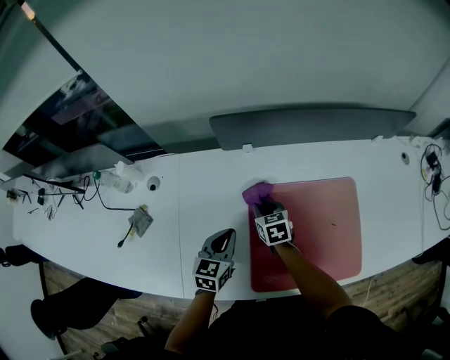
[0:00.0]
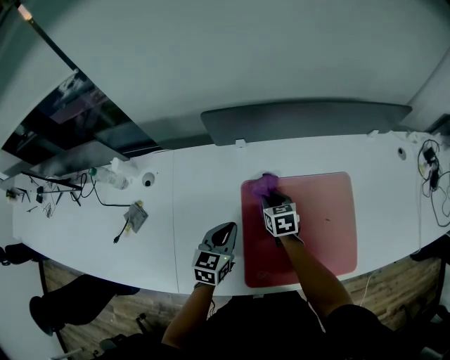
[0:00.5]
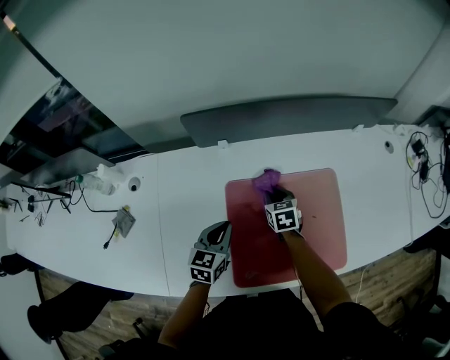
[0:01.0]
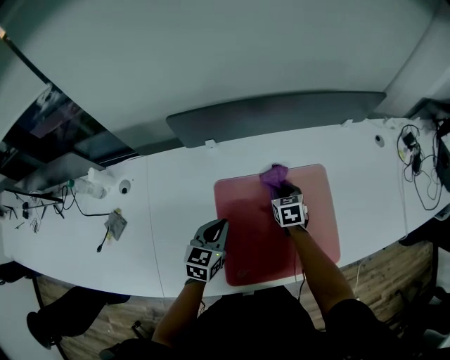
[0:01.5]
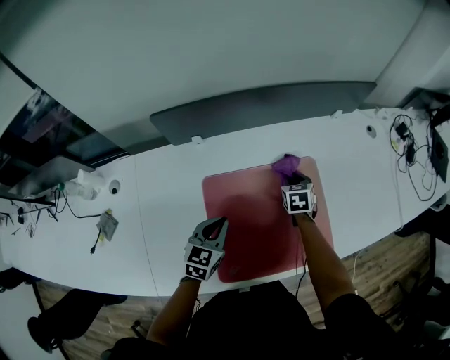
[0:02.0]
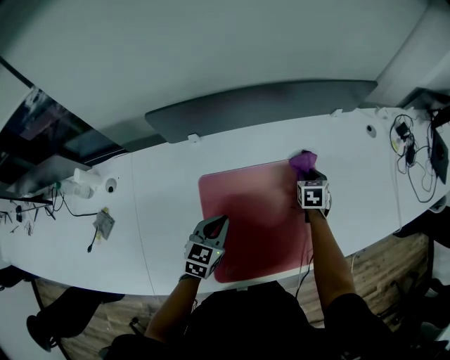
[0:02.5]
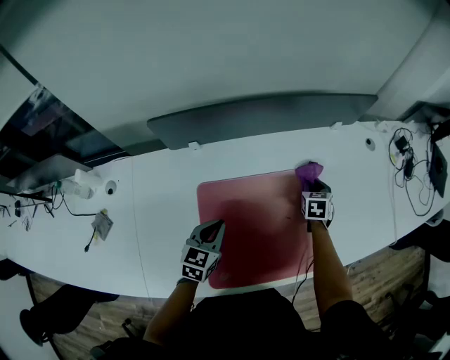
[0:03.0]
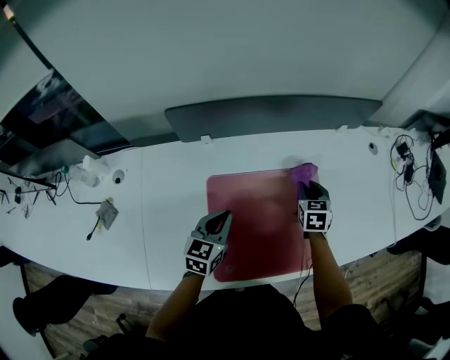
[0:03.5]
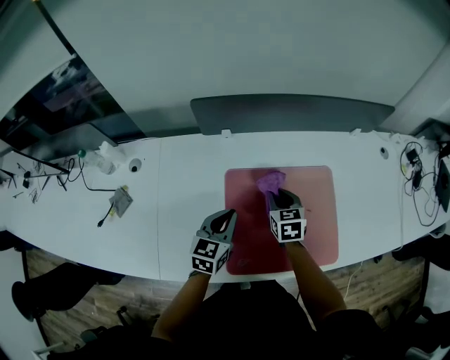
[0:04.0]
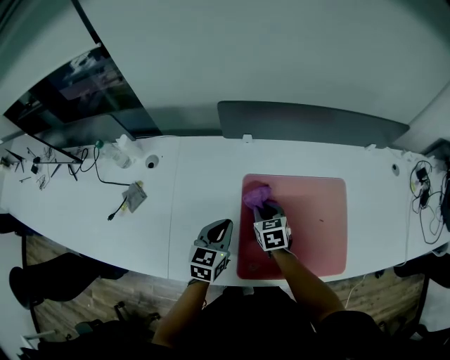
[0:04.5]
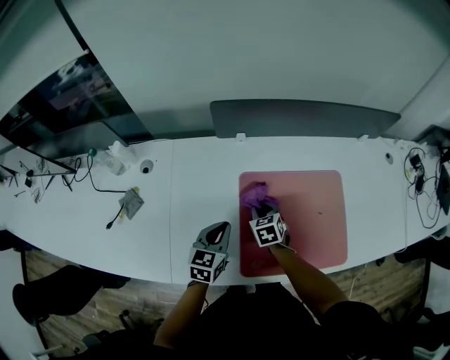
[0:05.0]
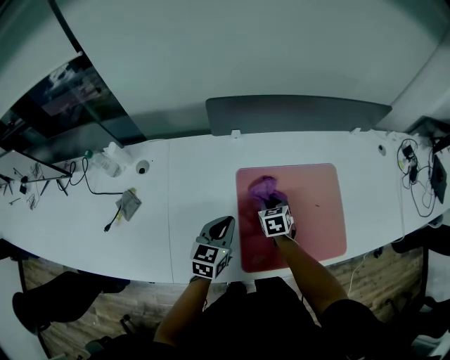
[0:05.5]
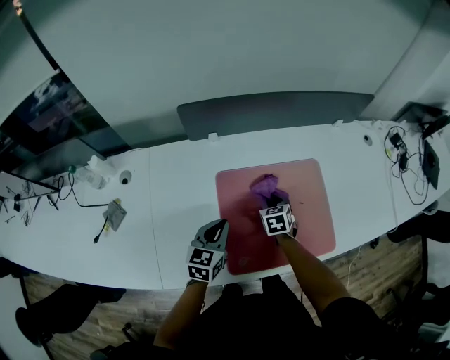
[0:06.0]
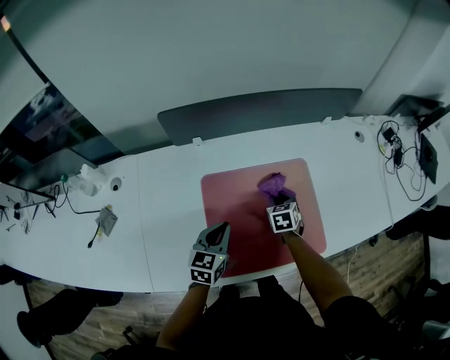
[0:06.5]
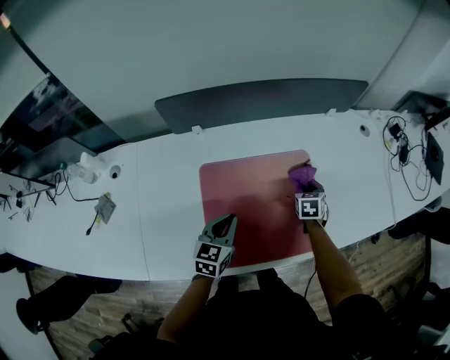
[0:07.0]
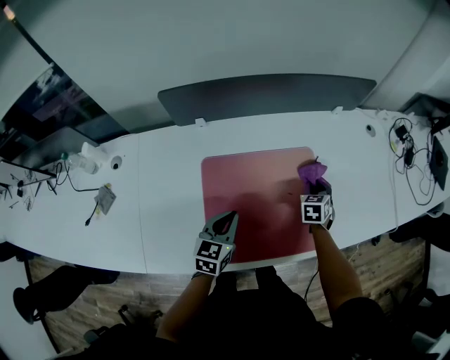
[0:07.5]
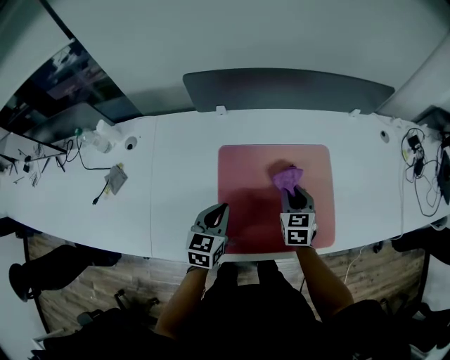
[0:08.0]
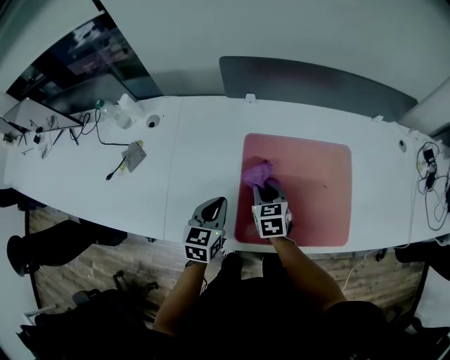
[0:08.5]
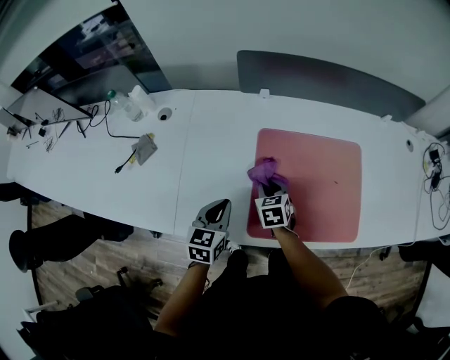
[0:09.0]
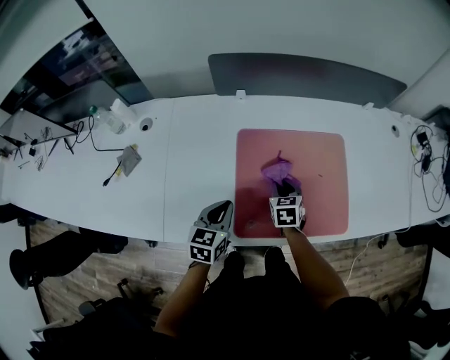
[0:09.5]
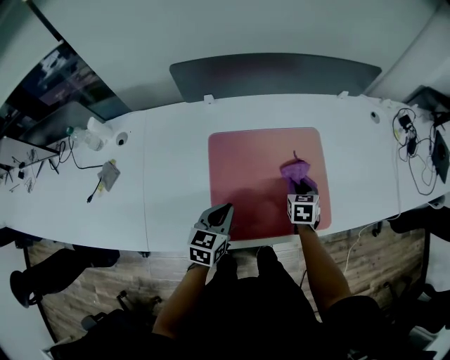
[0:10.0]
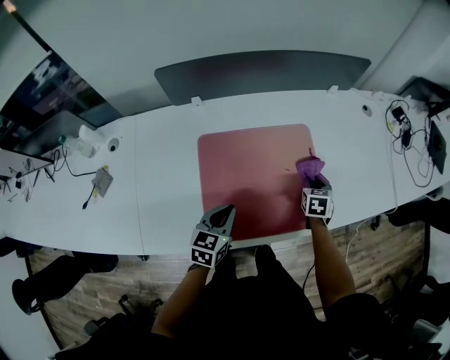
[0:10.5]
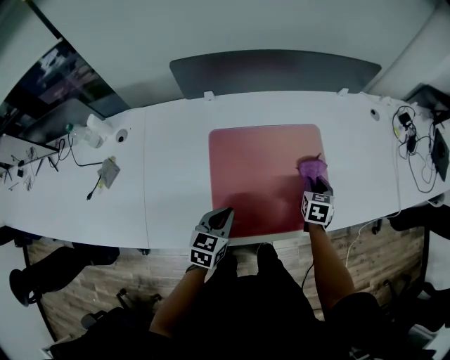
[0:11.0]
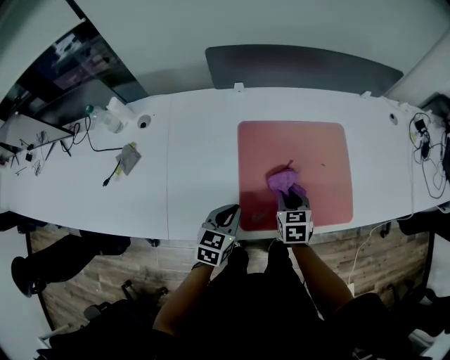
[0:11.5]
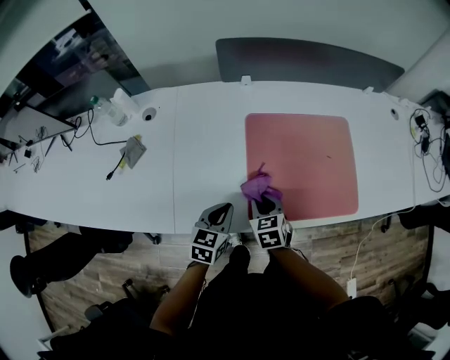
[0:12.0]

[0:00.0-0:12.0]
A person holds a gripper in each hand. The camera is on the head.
0:00.0 to 0:02.0: The right gripper shifts roughly 30 cm to the right, and swivels roughly 30 degrees, while the left gripper goes roughly 10 cm to the right.
0:02.0 to 0:04.0: The right gripper goes roughly 15 cm to the left, backward and upward. Meanwhile the left gripper ends up some 5 cm from where it was.
0:04.0 to 0:06.0: The right gripper heads downward, covering about 5 cm, and moves about 10 cm to the left and comes back.
0:06.0 to 0:08.0: The right gripper heads upward, covering roughly 5 cm, and moves approximately 20 cm to the right and comes back. Meanwhile the left gripper reaches about 10 cm to the right, then returns.
0:08.0 to 0:10.0: The right gripper heads downward, covering approximately 5 cm, and moves some 20 cm to the left and comes back. Meanwhile the left gripper travels to the left and back again, some 10 cm each way.
0:10.0 to 0:12.0: The right gripper is displaced to the left and backward by about 30 cm, and turns by some 20 degrees. The left gripper goes approximately 15 cm to the left and backward.

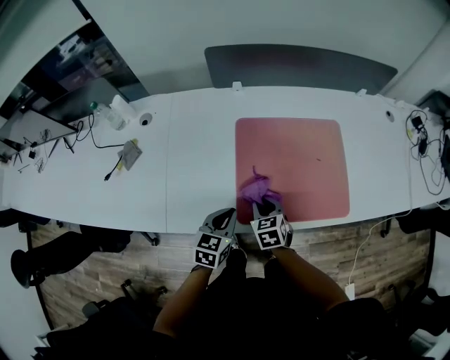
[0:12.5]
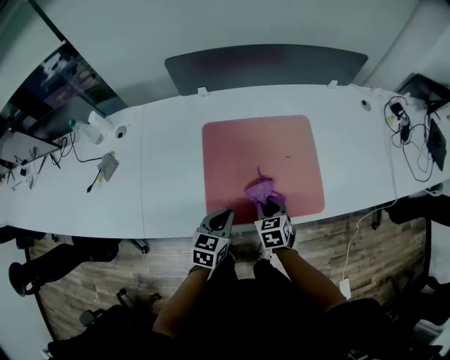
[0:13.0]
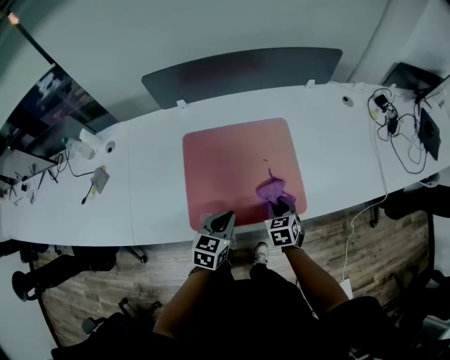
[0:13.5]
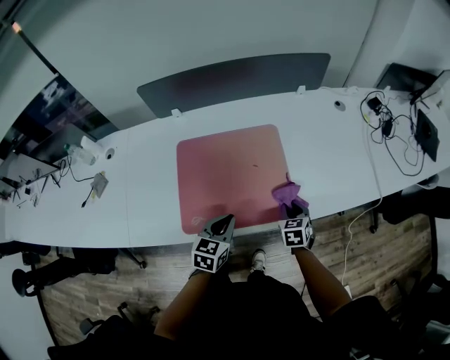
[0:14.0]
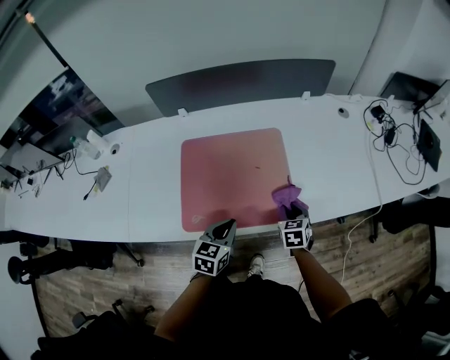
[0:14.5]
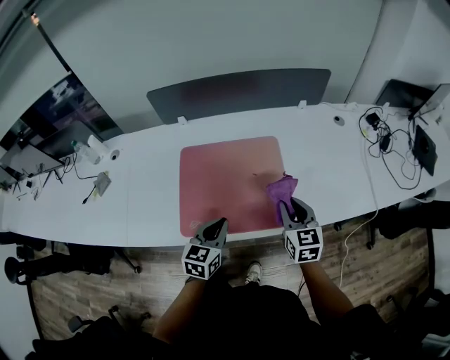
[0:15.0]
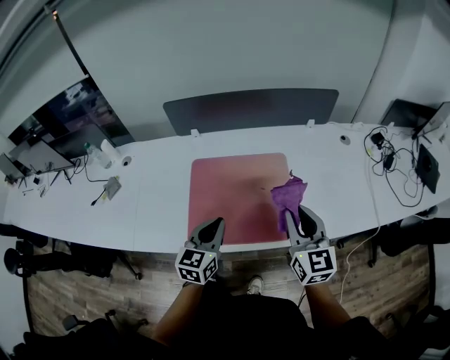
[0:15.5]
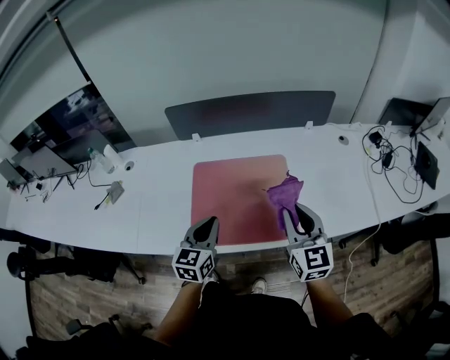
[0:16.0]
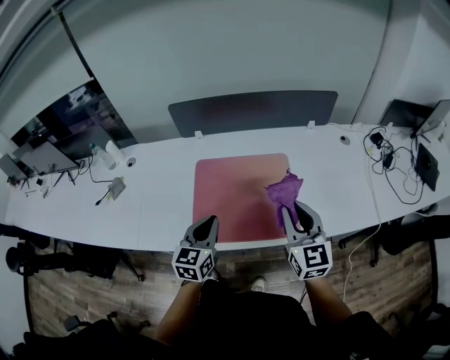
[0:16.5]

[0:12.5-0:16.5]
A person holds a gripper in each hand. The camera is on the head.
0:12.5 to 0:14.5: The left gripper heads to the right, covering some 20 cm, while the right gripper is displaced to the right by some 30 cm.
0:14.5 to 0:16.5: The left gripper moves upward and to the left, roughly 15 cm, and changes its angle by some 20 degrees. The right gripper goes some 25 cm upward, and tips its fingers upward by approximately 40 degrees.

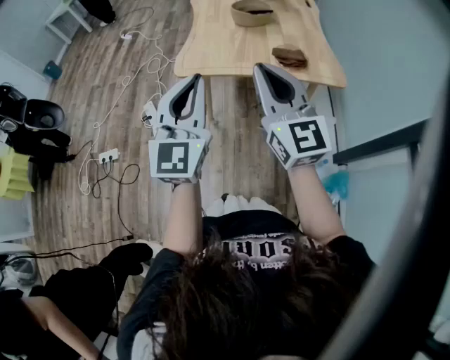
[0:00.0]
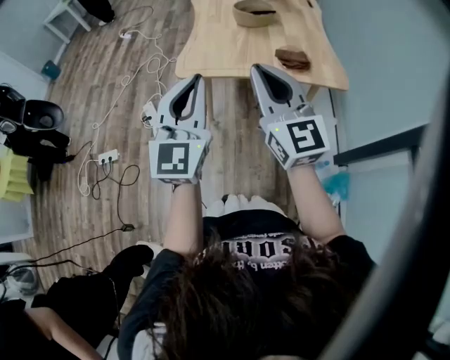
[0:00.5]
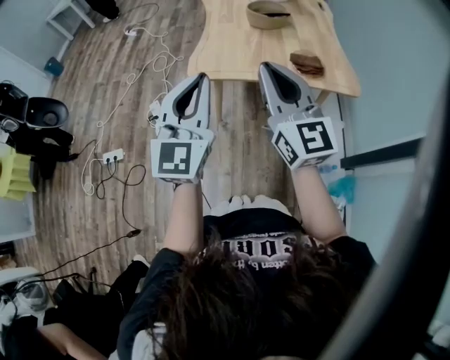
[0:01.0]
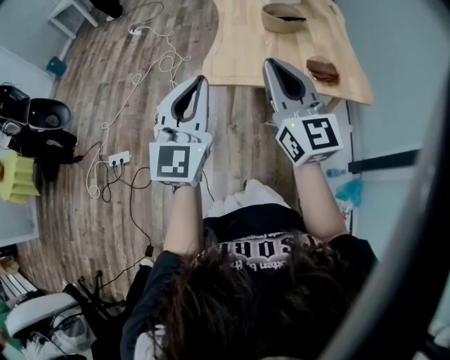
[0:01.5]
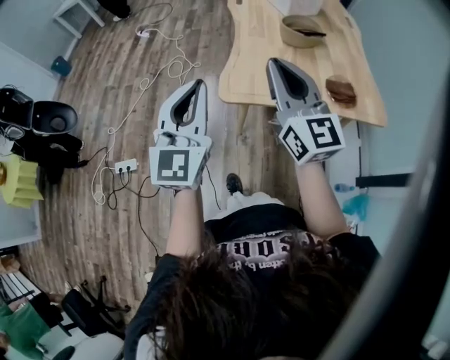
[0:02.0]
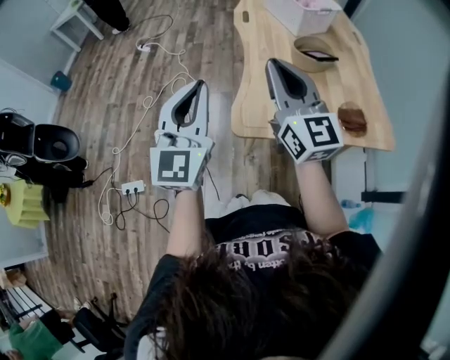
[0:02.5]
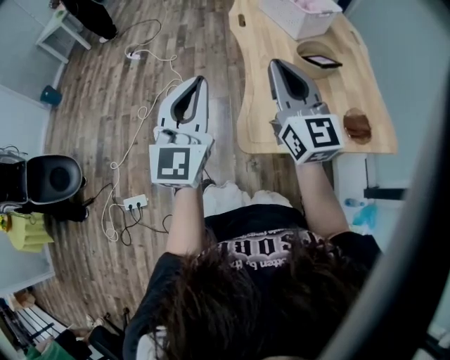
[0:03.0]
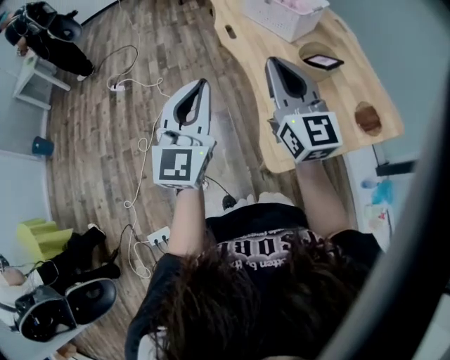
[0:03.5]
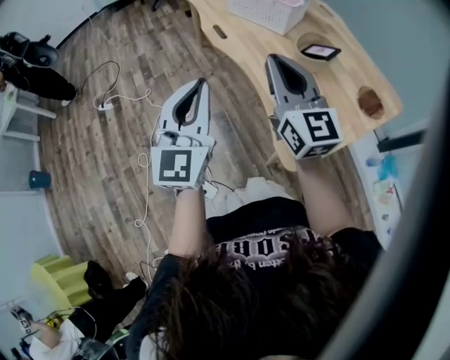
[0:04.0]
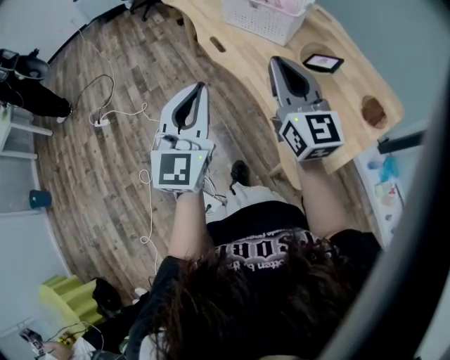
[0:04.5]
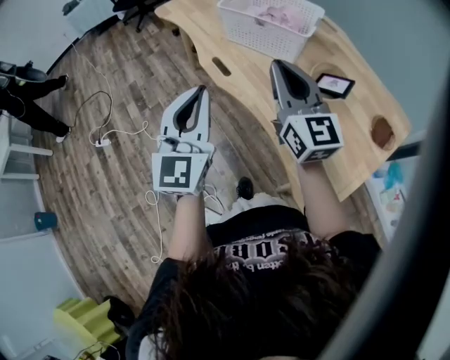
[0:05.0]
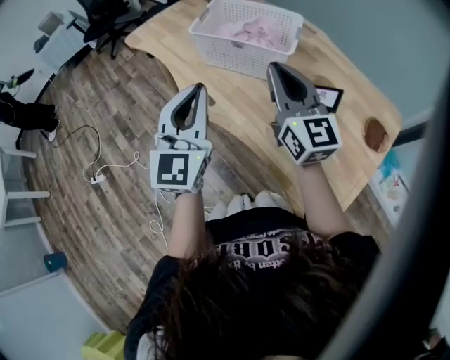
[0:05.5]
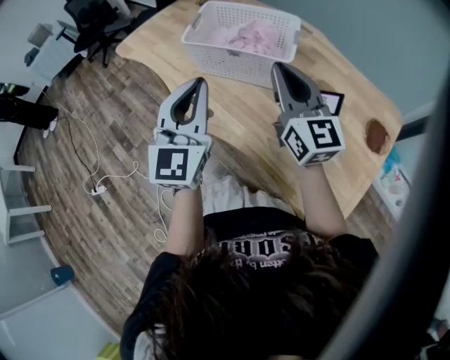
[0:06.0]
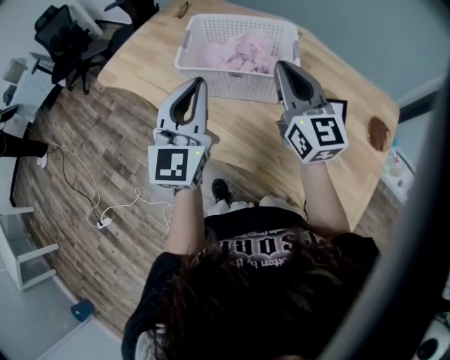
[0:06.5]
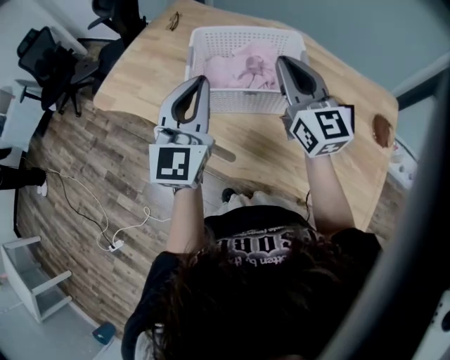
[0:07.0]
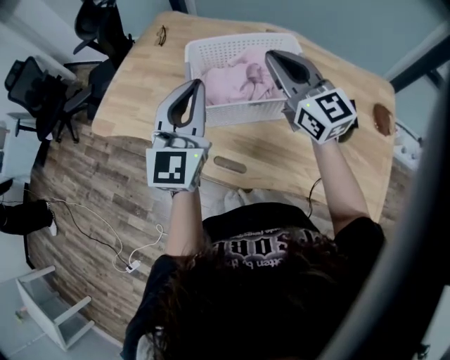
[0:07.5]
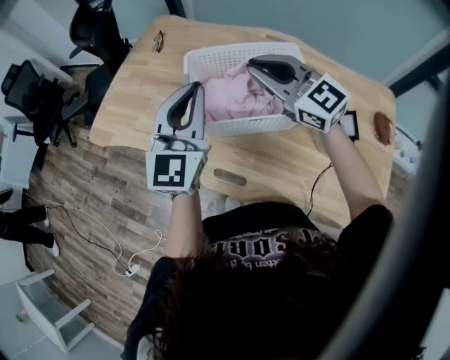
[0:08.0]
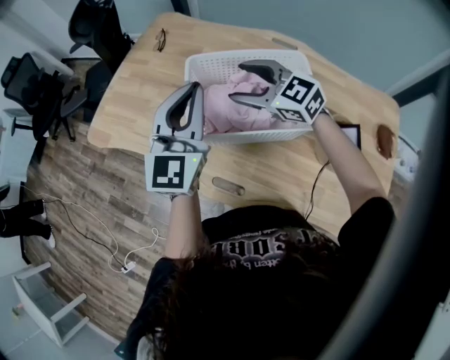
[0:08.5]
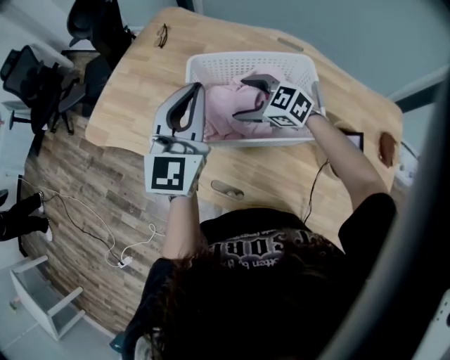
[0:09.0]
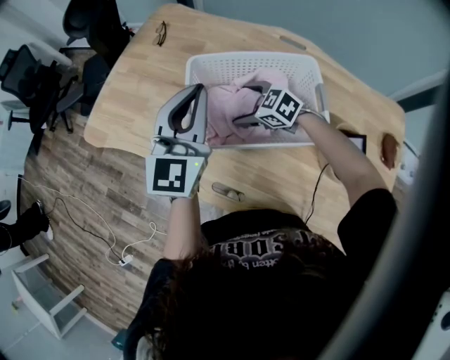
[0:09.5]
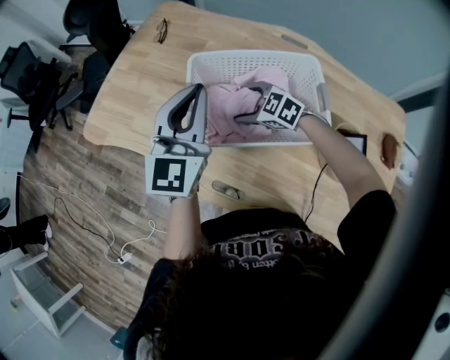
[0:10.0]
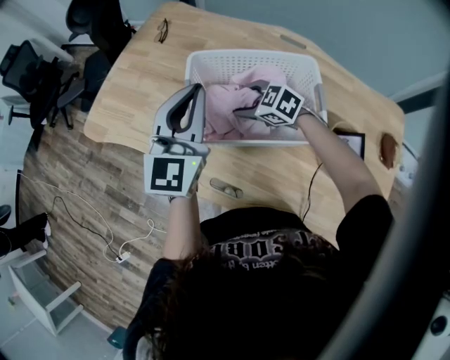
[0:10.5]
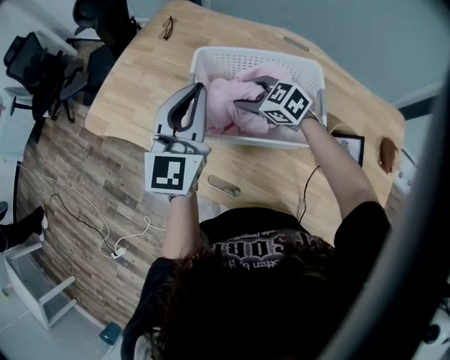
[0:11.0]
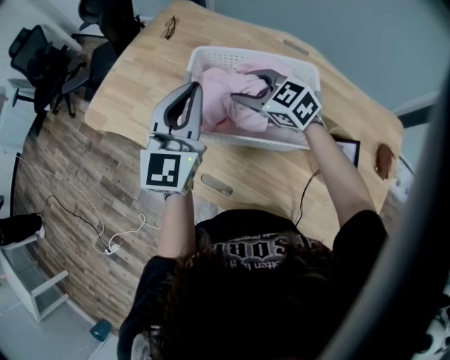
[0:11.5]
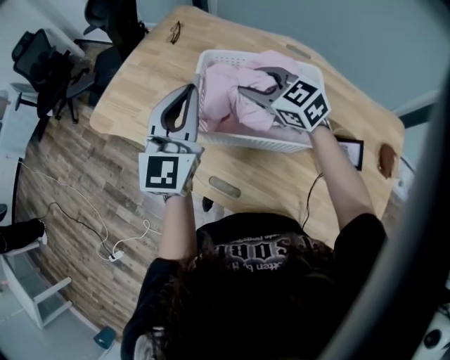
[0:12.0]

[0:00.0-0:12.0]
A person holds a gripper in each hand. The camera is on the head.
0:00.0 to 0:02.0: The left gripper is displaced to the left and forward by roughly 25 cm, while the right gripper shifts some 25 cm forward and to the left.
0:02.0 to 0:04.0: The left gripper ends up roughly 40 cm from where it was, and swivels about 30 degrees. The right gripper changes place by about 35 cm, and rotates about 30 degrees.
0:04.0 to 0:06.0: Both grippers move forward, about 35 cm. The left gripper turns by about 20 degrees, while the right gripper rotates some 20 degrees.
0:06.0 to 0:08.0: The right gripper travels forward and to the left by about 25 cm. Meanwhile the left gripper is displaced forward by some 25 cm, and changes its angle by about 20 degrees.
0:08.0 to 0:10.0: The left gripper travels forward by some 5 cm, while the right gripper travels downward by approximately 25 cm, points its fingers some 40 degrees further downward, and opens up.
0:10.0 to 0:12.0: The right gripper shifts some 15 cm upward, and closes up.
